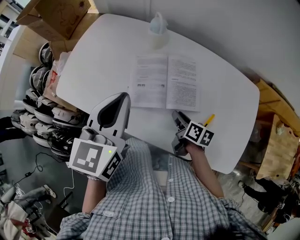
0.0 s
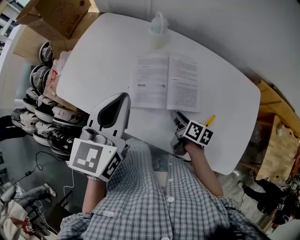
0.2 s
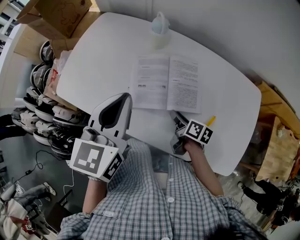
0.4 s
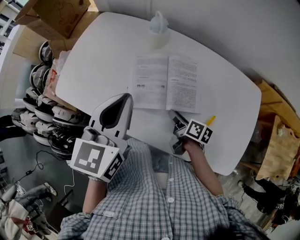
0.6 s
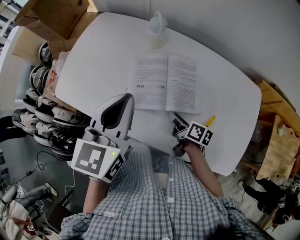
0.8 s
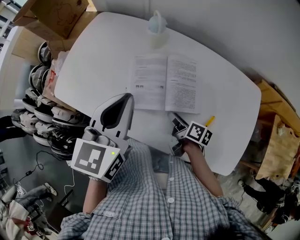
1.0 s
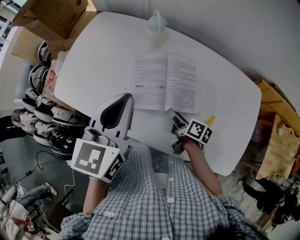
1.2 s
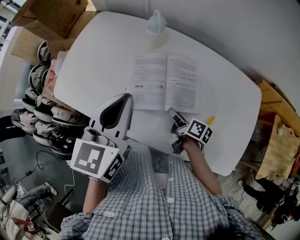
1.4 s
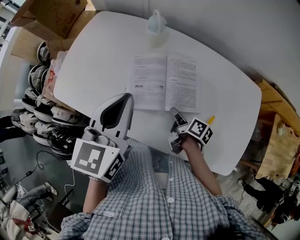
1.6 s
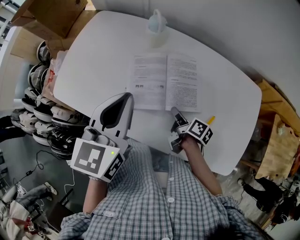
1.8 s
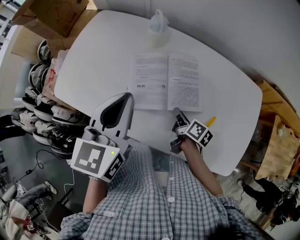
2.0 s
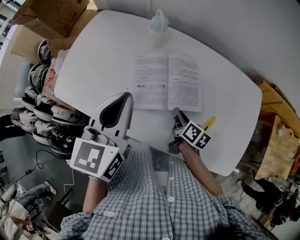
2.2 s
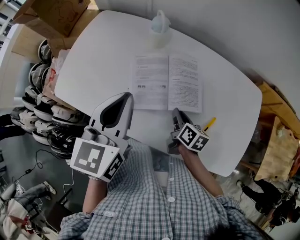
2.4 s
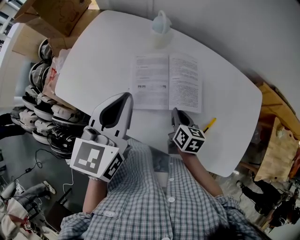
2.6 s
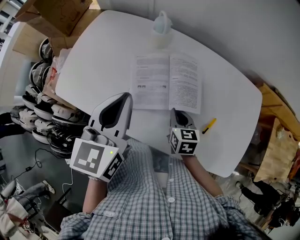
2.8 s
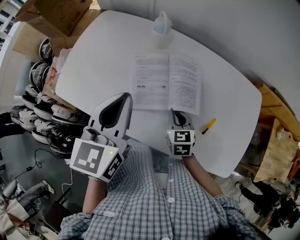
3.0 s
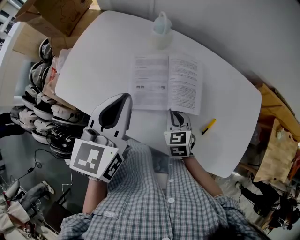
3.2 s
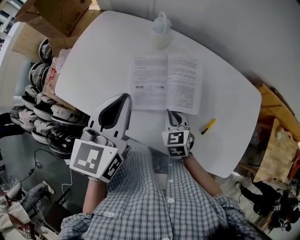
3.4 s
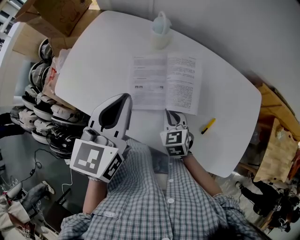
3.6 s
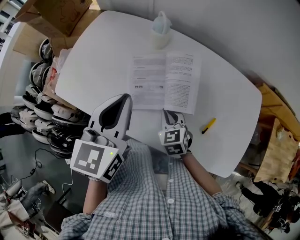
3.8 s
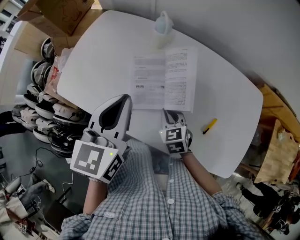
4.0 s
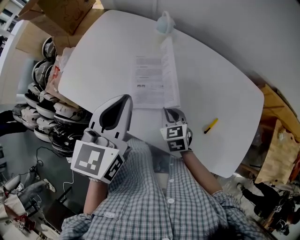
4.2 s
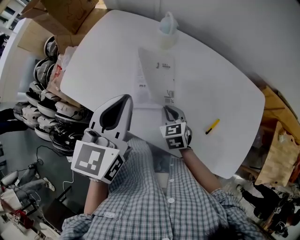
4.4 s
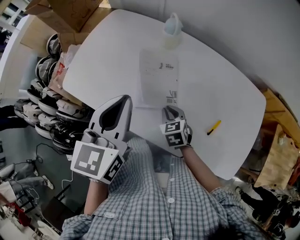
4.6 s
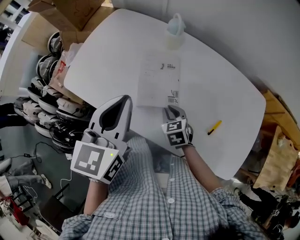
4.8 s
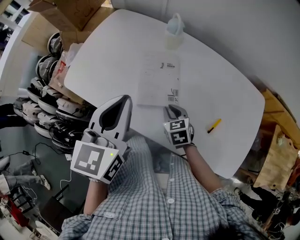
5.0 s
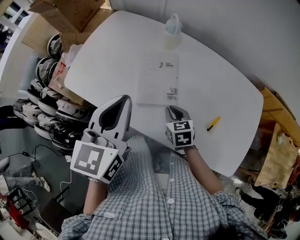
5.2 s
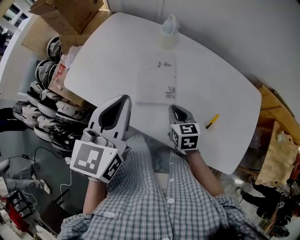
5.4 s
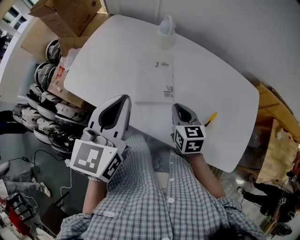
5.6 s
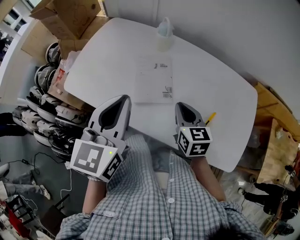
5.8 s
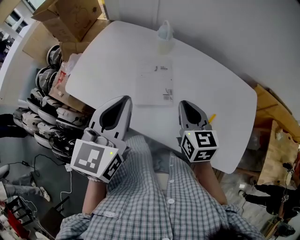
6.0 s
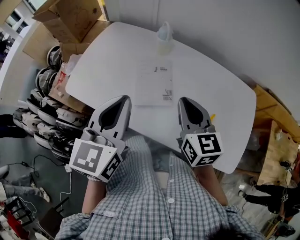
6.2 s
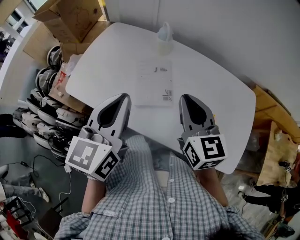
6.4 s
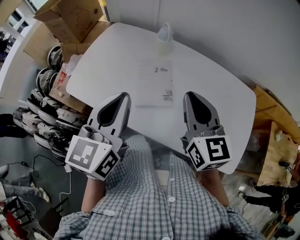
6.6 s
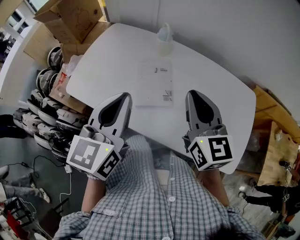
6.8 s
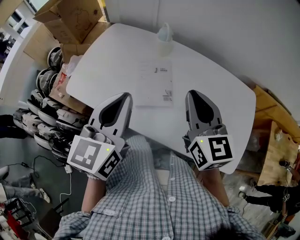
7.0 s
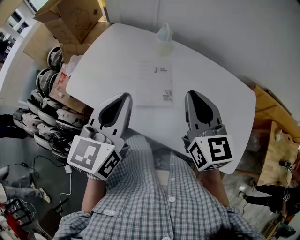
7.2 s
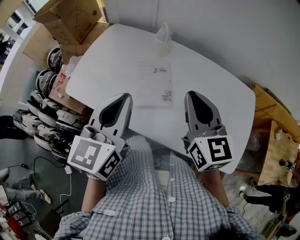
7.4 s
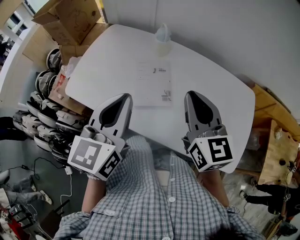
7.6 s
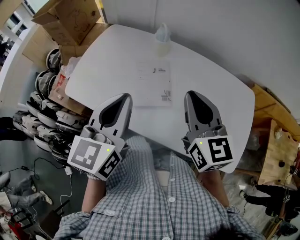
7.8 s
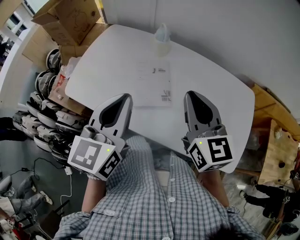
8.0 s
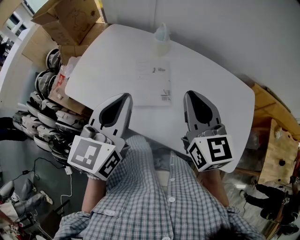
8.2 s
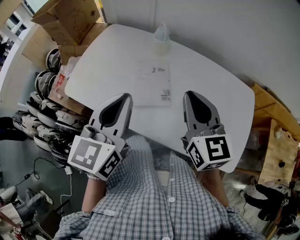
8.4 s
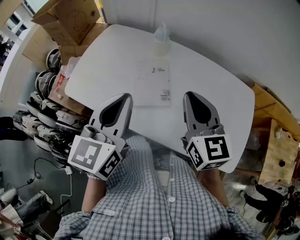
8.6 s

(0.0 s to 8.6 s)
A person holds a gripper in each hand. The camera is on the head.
0.0 s - 1.4 s: The grippers make only small movements.
1.4 s - 2.8 s: The right gripper rolls counterclockwise, seen from behind, by approximately 50 degrees, and closes.
2.8 s - 4.4 s: The right gripper goes roughly 5 cm to the left, and changes its angle by some 20 degrees.
4.4 s - 5.8 s: The left gripper heads backward, covering some 5 cm; the right gripper travels upward by roughly 10 cm, and rotates some 20 degrees.
5.8 s - 7.2 s: The right gripper travels upward by approximately 15 cm, and rotates about 20 degrees.
7.2 s - 8.6 s: The two grippers keep their place.

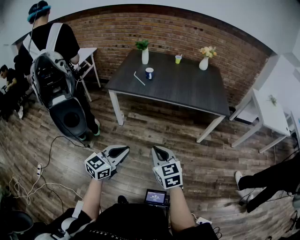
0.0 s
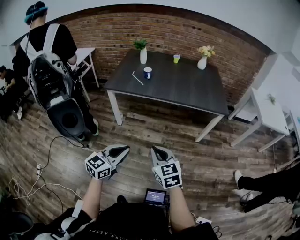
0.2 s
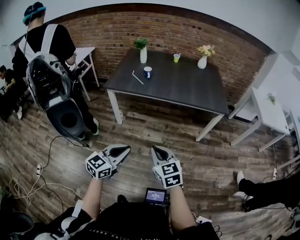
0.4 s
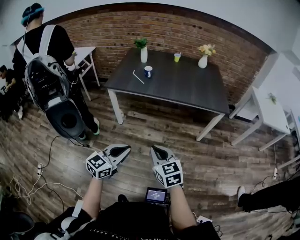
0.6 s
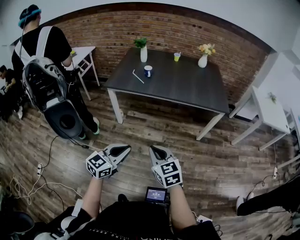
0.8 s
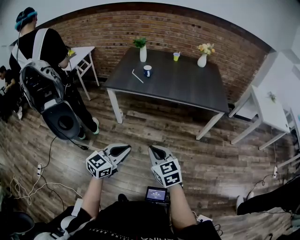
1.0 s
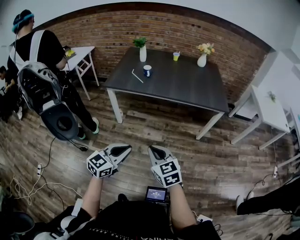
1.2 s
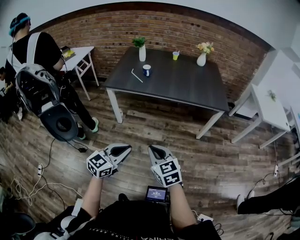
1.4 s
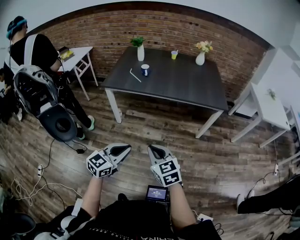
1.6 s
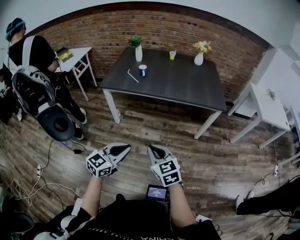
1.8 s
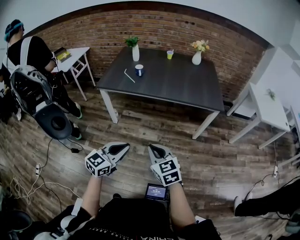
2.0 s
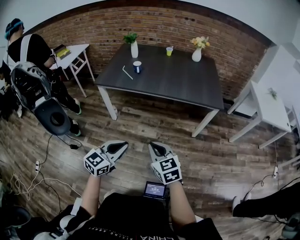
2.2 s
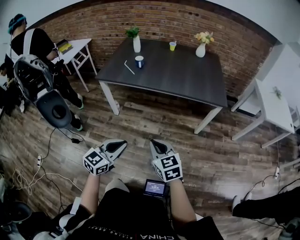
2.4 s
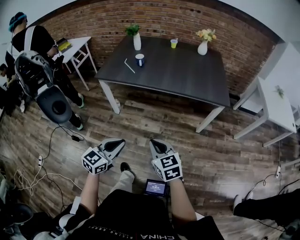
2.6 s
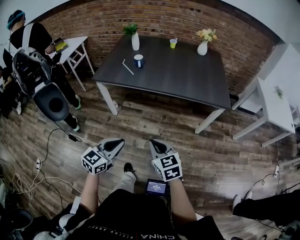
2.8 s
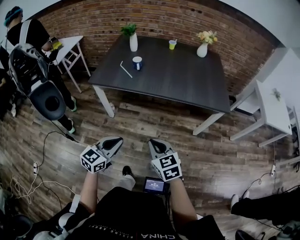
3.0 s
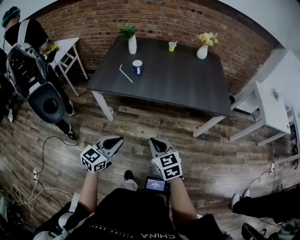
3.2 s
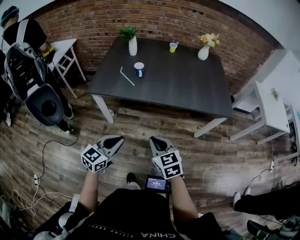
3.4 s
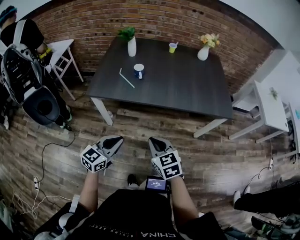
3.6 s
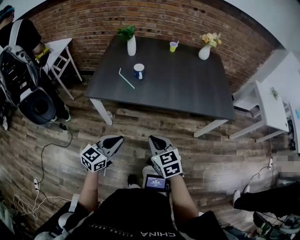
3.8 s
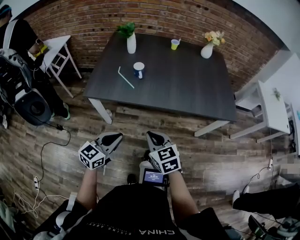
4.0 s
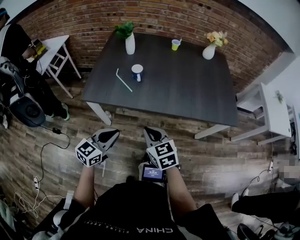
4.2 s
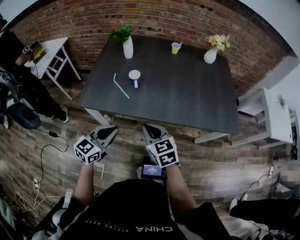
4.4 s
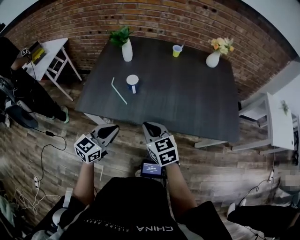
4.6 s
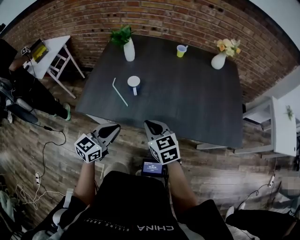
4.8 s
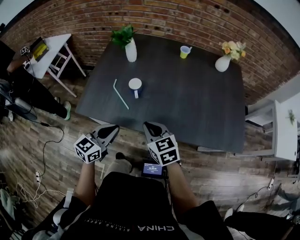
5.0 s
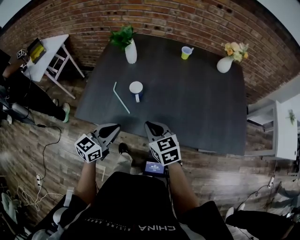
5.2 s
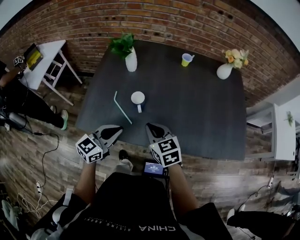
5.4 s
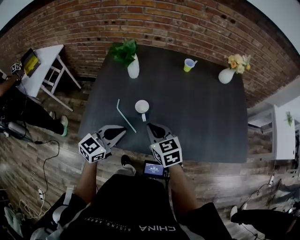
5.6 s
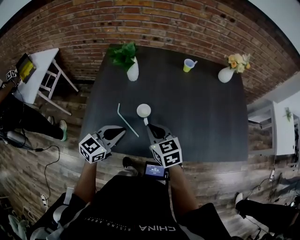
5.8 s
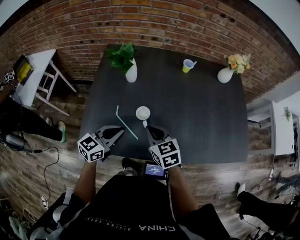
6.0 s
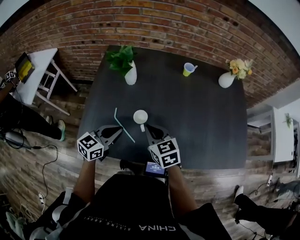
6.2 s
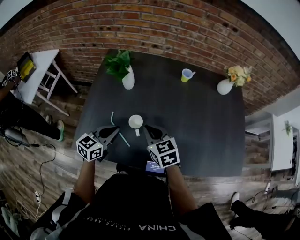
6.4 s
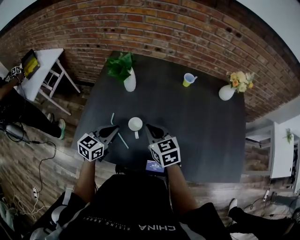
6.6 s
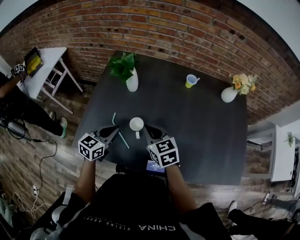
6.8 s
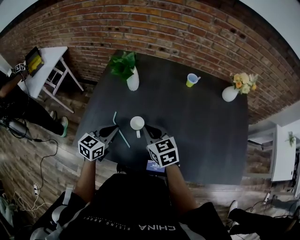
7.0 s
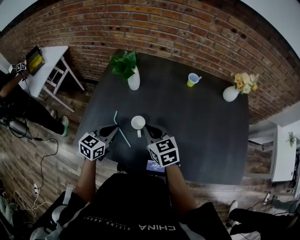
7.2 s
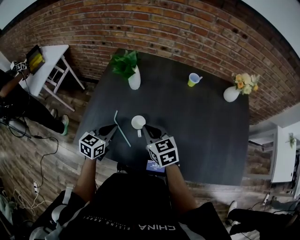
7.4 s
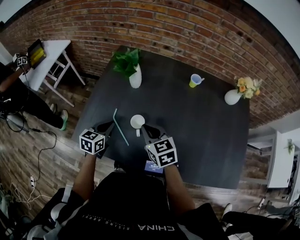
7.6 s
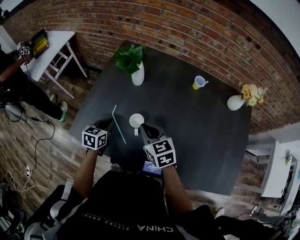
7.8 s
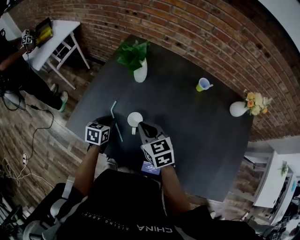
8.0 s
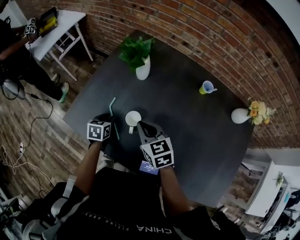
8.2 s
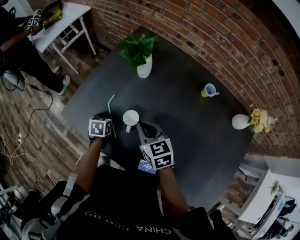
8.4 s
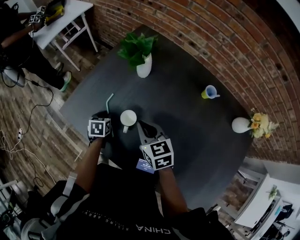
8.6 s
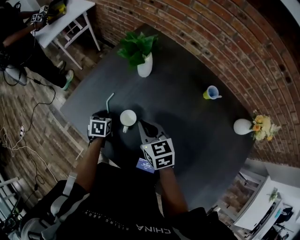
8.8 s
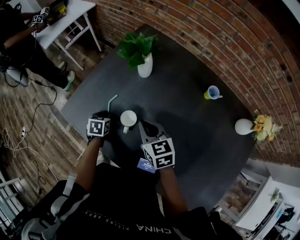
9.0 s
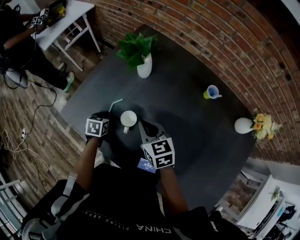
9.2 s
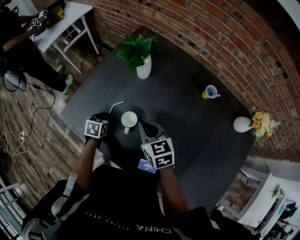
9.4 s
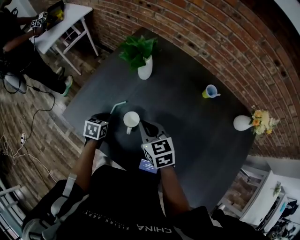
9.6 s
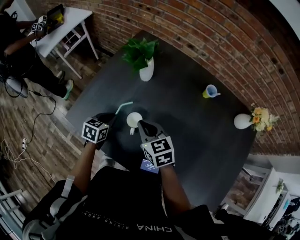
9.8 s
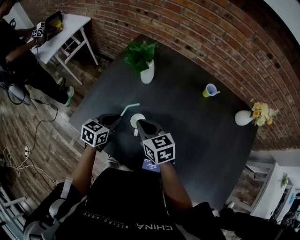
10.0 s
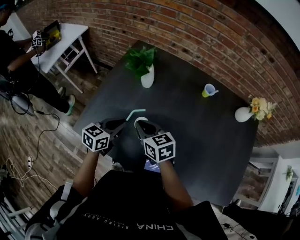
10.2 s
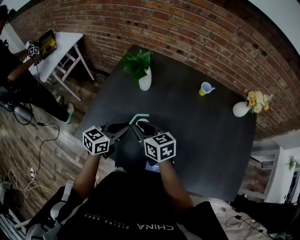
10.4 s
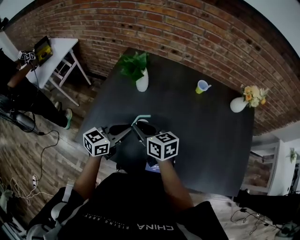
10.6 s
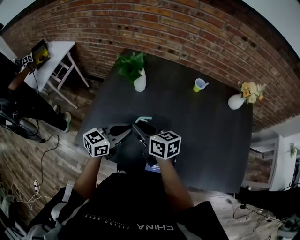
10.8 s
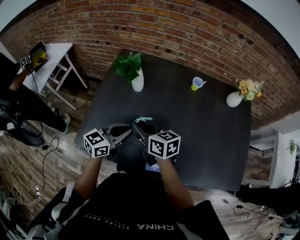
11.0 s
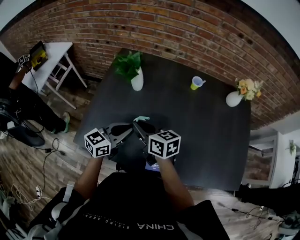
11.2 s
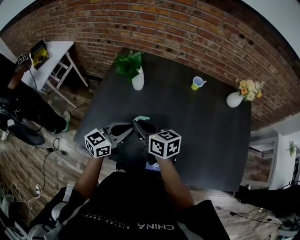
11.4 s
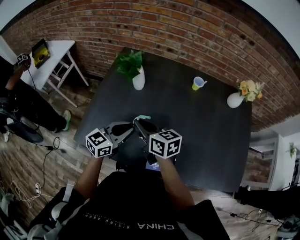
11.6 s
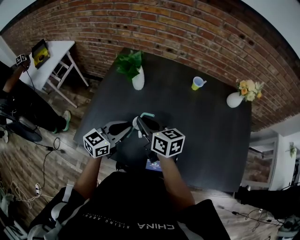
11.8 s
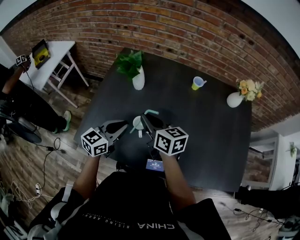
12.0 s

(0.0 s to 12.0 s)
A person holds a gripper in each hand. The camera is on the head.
0.0 s - 1.6 s: The grippers stay close to where they were, moving slightly.
1.6 s - 3.0 s: Both grippers move forward, approximately 15 cm.
3.0 s - 4.4 s: The two grippers go some 30 cm forward.
4.4 s - 6.0 s: The two grippers go approximately 25 cm forward.
6.0 s - 7.6 s: The right gripper is displaced forward by roughly 5 cm; the left gripper travels downward and forward by about 10 cm, and rotates about 30 degrees.
7.6 s - 9.0 s: The right gripper moves some 5 cm. Meanwhile the left gripper moves downward, roughly 15 cm, and turns by about 40 degrees.
9.0 s - 10.4 s: The right gripper moves roughly 10 cm. Meanwhile the left gripper goes approximately 20 cm upward, and angles its fingers upward, by approximately 40 degrees.
10.4 s - 12.0 s: The right gripper goes some 5 cm upward and to the right.

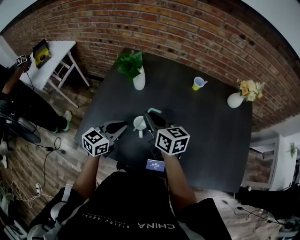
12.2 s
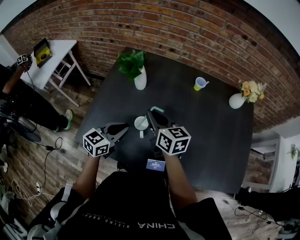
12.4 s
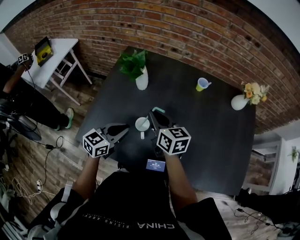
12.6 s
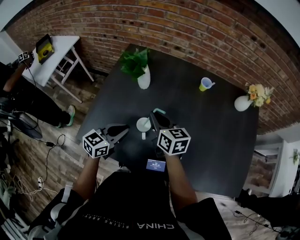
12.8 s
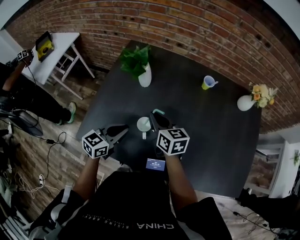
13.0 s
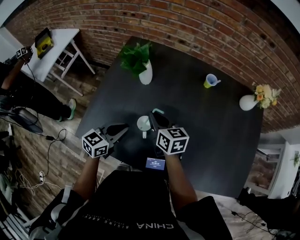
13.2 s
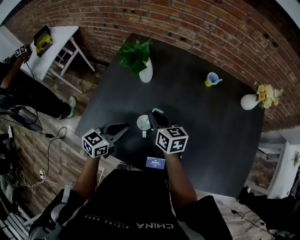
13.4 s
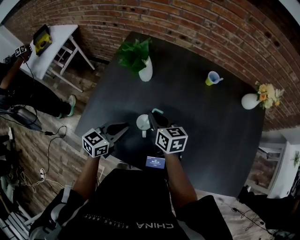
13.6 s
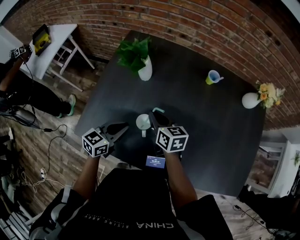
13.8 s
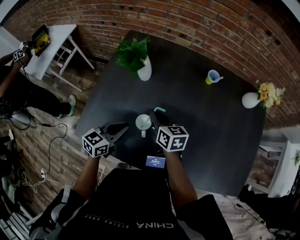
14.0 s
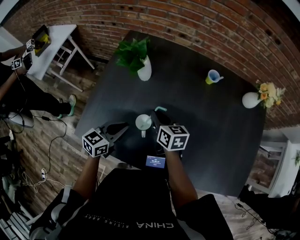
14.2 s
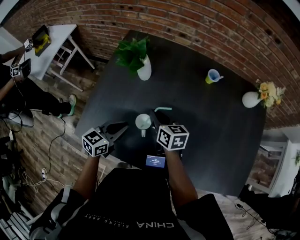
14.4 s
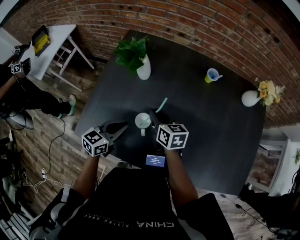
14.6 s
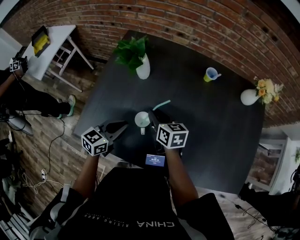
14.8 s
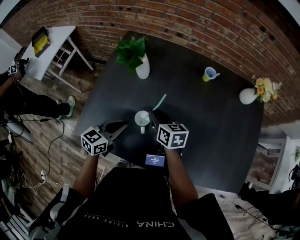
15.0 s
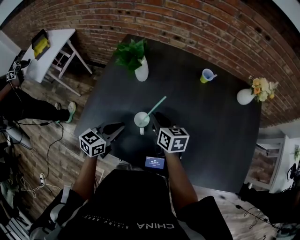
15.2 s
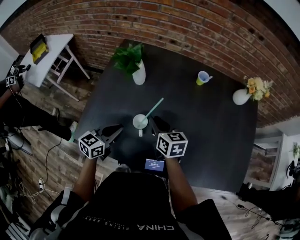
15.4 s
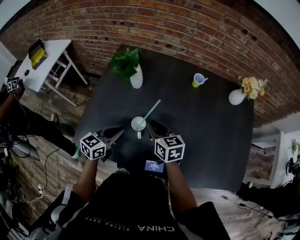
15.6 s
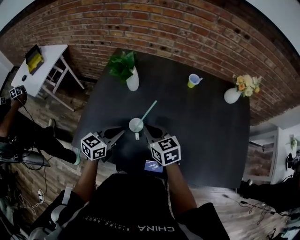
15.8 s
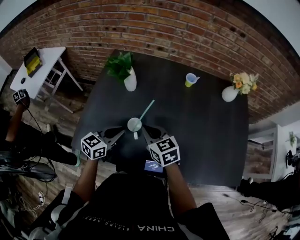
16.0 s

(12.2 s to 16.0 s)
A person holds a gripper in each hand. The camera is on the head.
12.2 s - 13.4 s: The right gripper moves downward, some 10 cm. Meanwhile the left gripper changes place by roughly 5 cm.
13.4 s - 14.8 s: The grippers move only a little.
14.8 s - 16.0 s: The right gripper moves backward and upward, roughly 10 cm, and turns by some 20 degrees.
